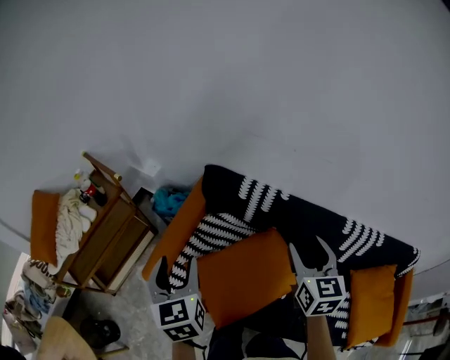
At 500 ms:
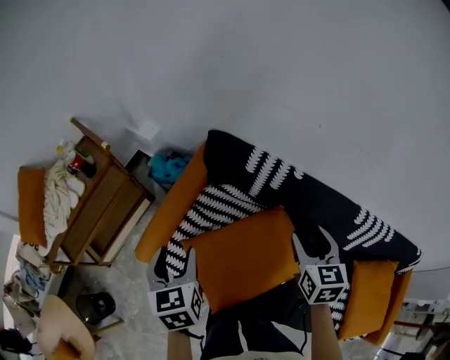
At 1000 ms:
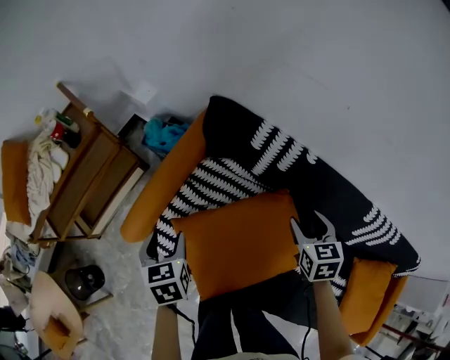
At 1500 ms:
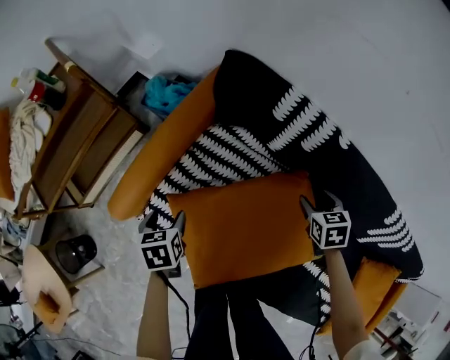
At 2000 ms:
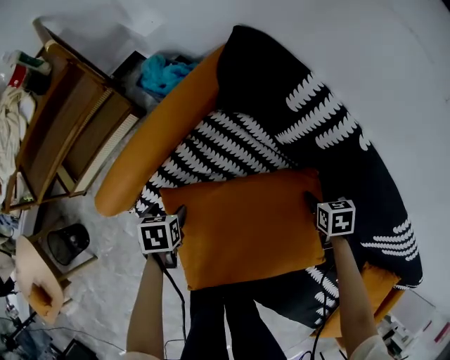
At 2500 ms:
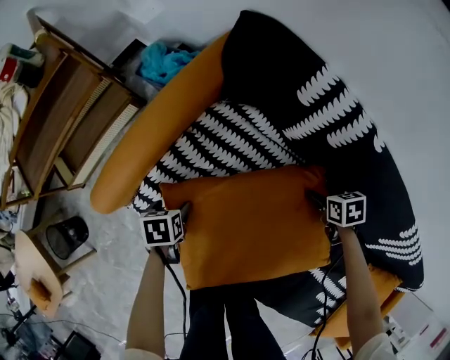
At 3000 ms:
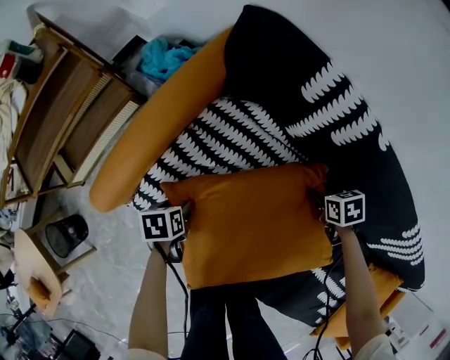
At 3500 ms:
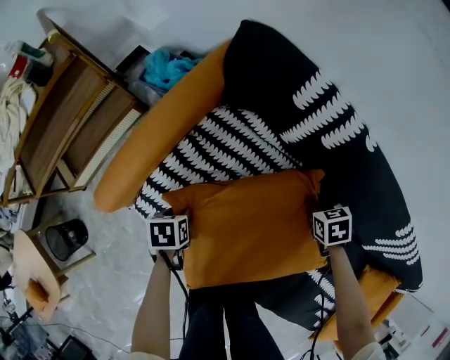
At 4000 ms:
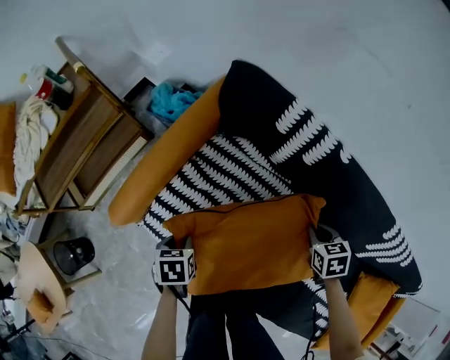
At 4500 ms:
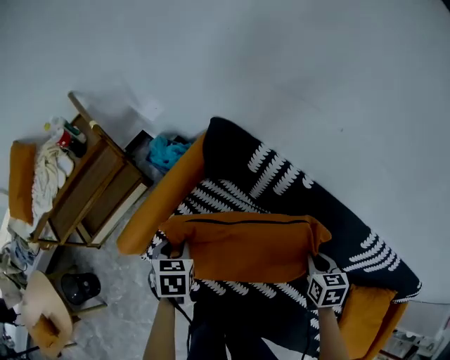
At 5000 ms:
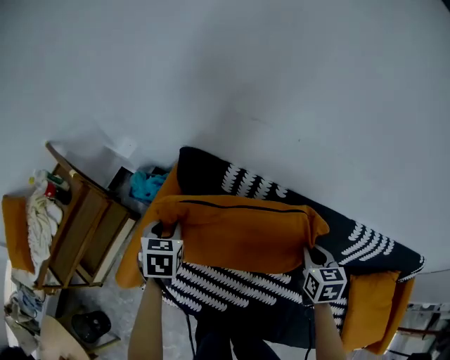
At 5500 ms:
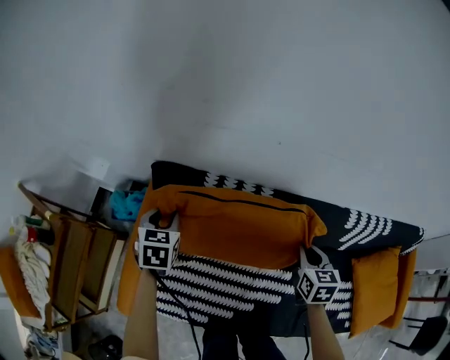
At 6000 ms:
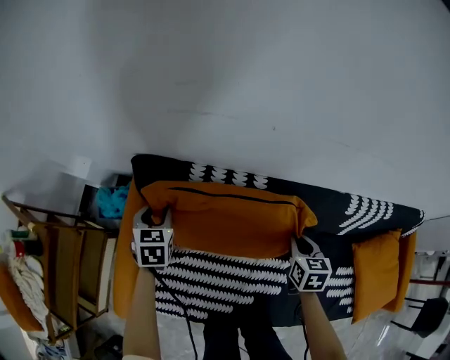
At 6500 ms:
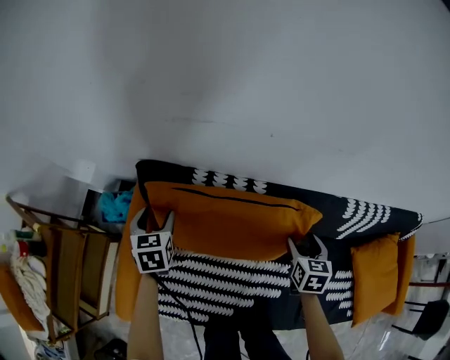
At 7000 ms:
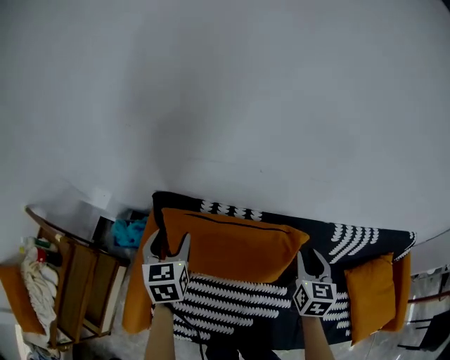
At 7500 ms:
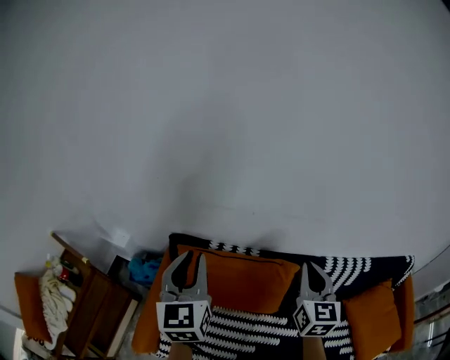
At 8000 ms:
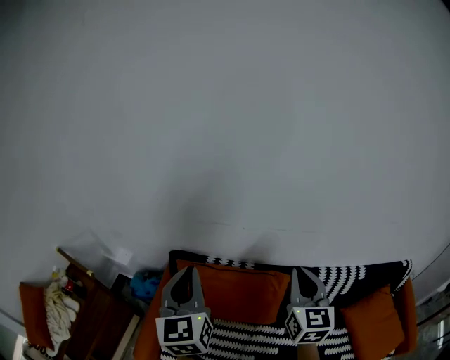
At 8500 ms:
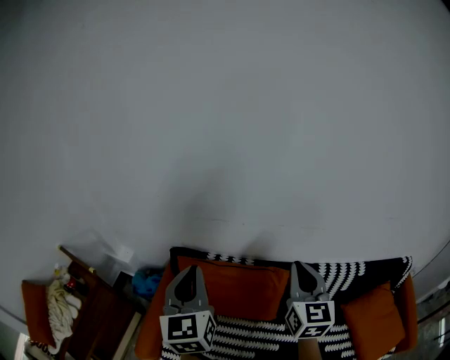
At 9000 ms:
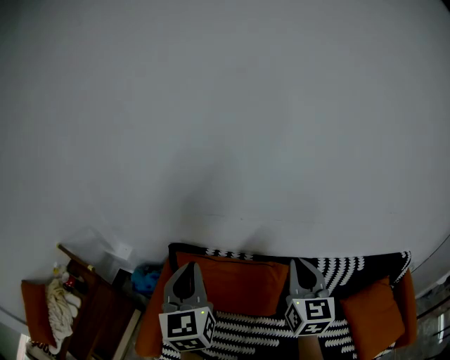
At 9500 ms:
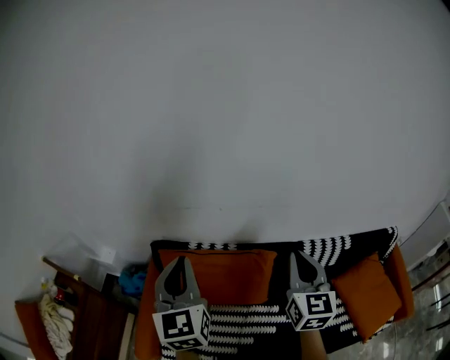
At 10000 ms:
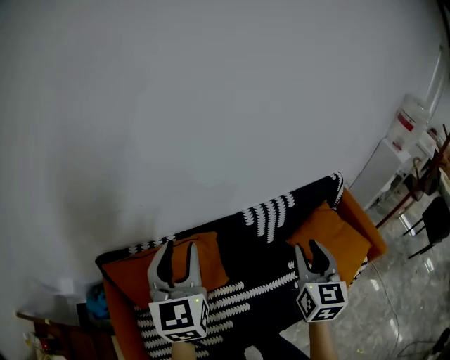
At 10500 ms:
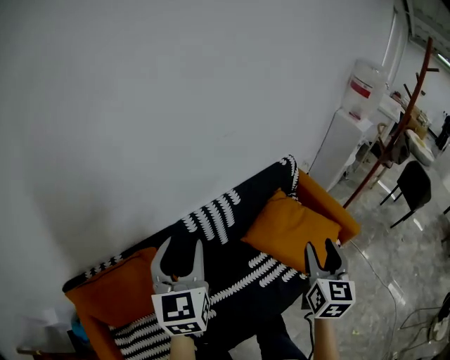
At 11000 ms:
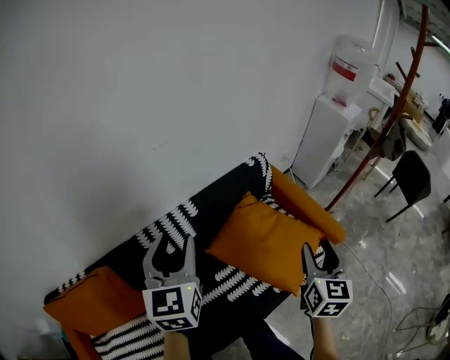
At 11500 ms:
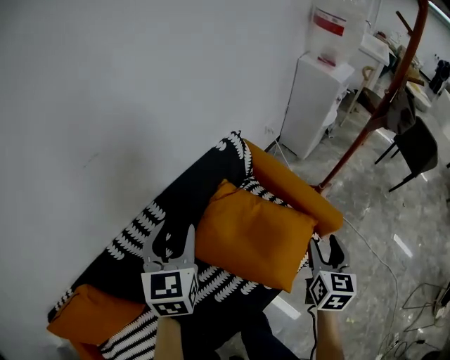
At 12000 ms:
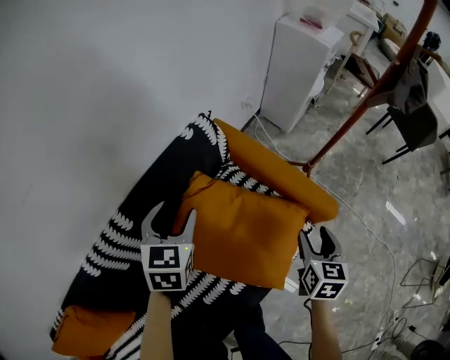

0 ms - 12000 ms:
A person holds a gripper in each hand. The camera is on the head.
0 ms - 2000 ms: Both grippers move downward, approximately 50 cm. The right gripper angles its fingers downward, by roughly 50 degrees, while the left gripper angles its fingers downward, by roughly 50 degrees.
2000 ms - 4000 ms: Both grippers move upward, about 10 cm. The left gripper closes its fingers; the right gripper closes up.
4000 ms - 6000 ms: The right gripper changes its angle by roughly 40 degrees. The left gripper moves some 40 cm, and rolls clockwise, seen from behind, by roughly 40 degrees.
6000 ms - 8000 ms: Both grippers travel together upward, some 50 cm. The left gripper tilts its fingers roughly 40 degrees upward, and closes its fingers. Meanwhile the right gripper points its fingers some 40 degrees further upward, and opens, then closes once more.
8000 ms - 10000 ms: The right gripper shifts by some 25 cm, turns by approximately 30 degrees, and opens. Meanwhile the left gripper shifts by roughly 20 cm, swivels about 30 degrees, and opens.
10000 ms - 12000 ms: The two grippers travel together, roughly 70 cm. The right gripper changes its angle by about 40 degrees. The left gripper tips its fingers downward by some 30 degrees.

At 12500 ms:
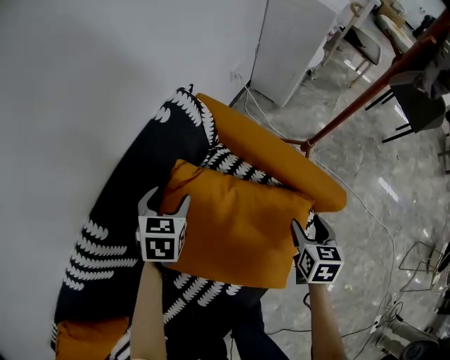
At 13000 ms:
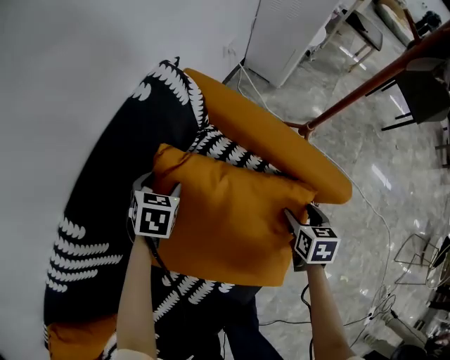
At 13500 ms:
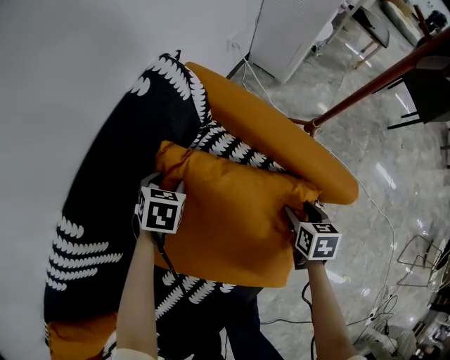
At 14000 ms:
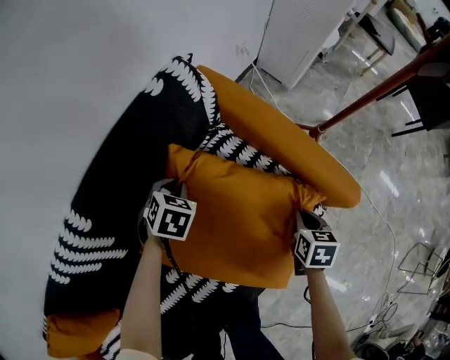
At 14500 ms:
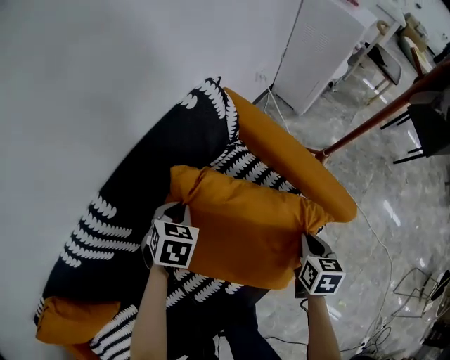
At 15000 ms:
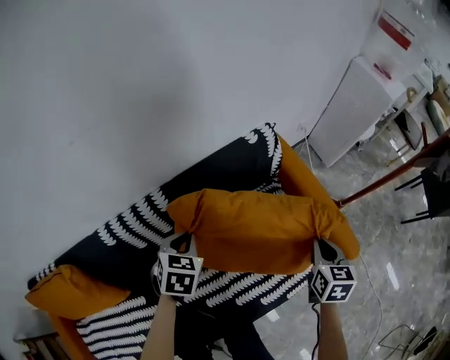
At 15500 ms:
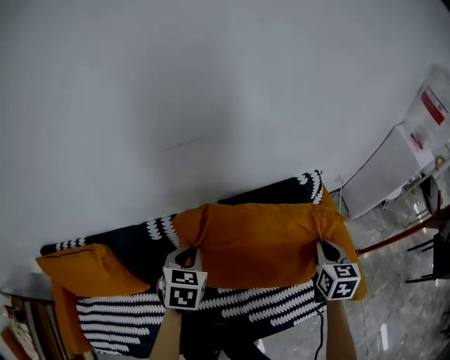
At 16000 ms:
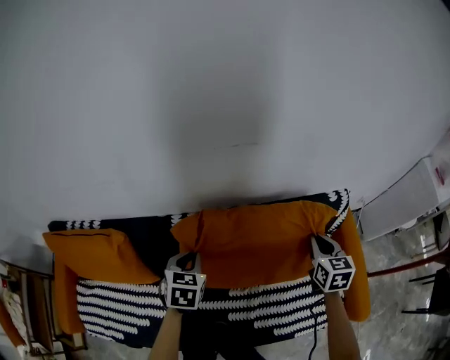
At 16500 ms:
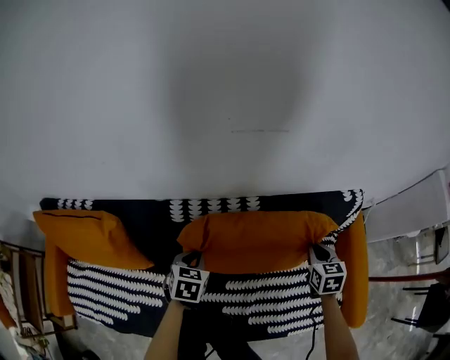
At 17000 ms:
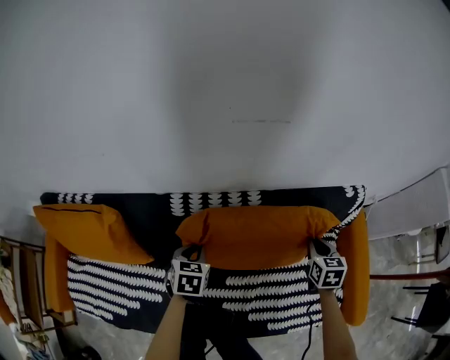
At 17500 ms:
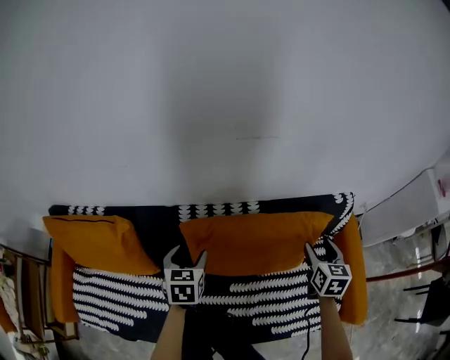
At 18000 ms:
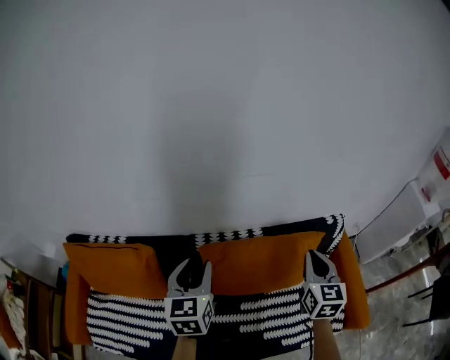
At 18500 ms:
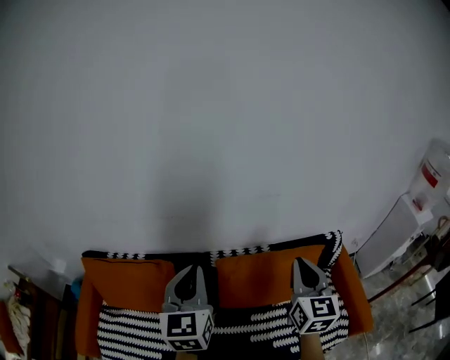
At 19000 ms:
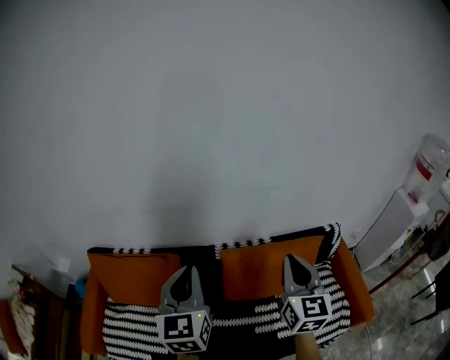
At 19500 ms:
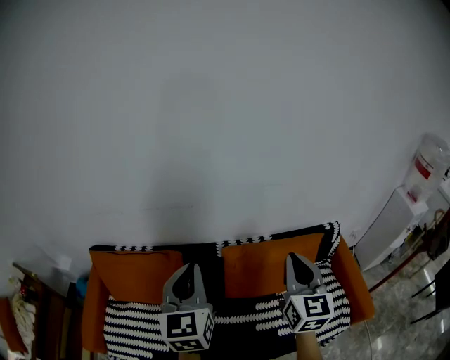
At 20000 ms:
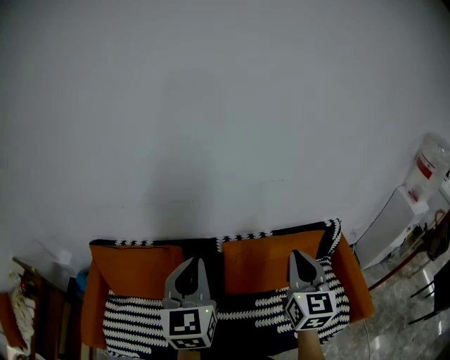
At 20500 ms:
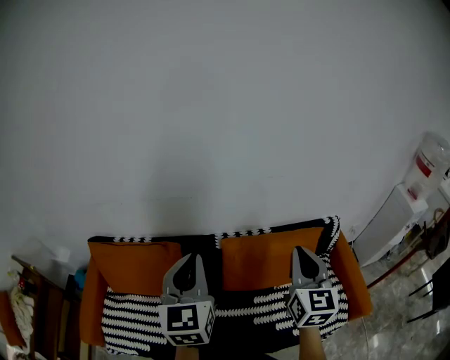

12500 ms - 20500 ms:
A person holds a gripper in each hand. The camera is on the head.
12500 ms - 14500 ms: The left gripper shifts some 5 cm backward, reaches about 15 cm downward, then returns, and closes its fingers. Meanwhile the right gripper travels downward and back again, some 10 cm each way, and closes its fingers.
14500 ms - 16500 ms: The left gripper reaches some 20 cm upward, then returns, and rotates around the line of its fingers by approximately 40 degrees, counterclockwise from behind. The right gripper moves approximately 20 cm upward and comes back, and twists about 50 degrees counterclockwise, seen from behind.
16500 ms - 18500 ms: The left gripper travels upward by approximately 40 cm, tips its fingers upward by approximately 50 degrees, and opens, then closes again. The right gripper shifts approximately 50 cm upward and to the left, tilts its fingers about 40 degrees upward, and opens, then closes again.
18500 ms - 20500 ms: The grippers both shift backward by roughly 10 cm.

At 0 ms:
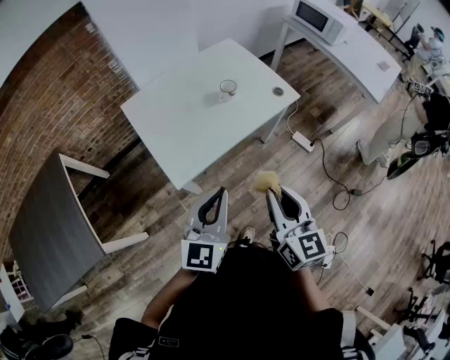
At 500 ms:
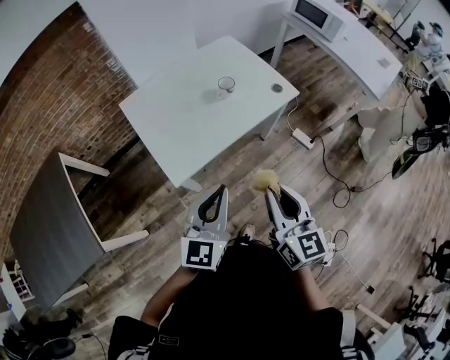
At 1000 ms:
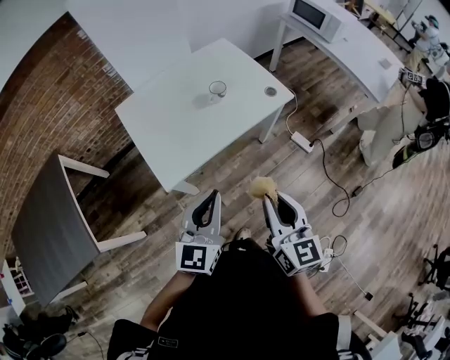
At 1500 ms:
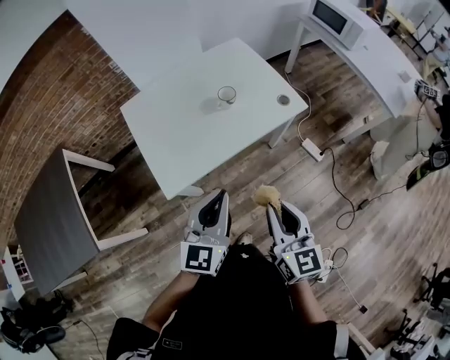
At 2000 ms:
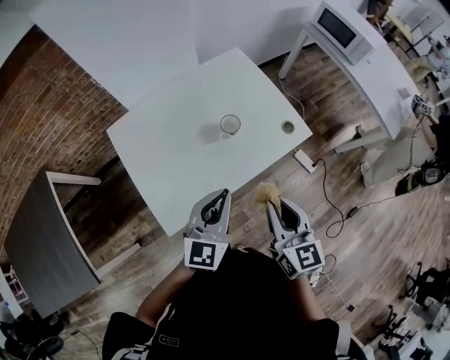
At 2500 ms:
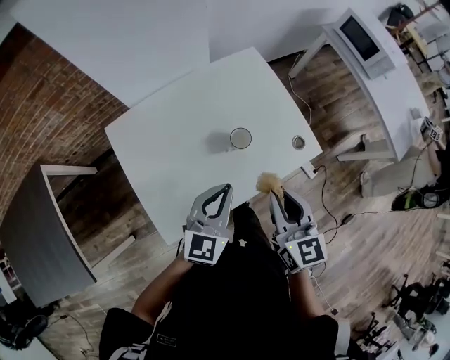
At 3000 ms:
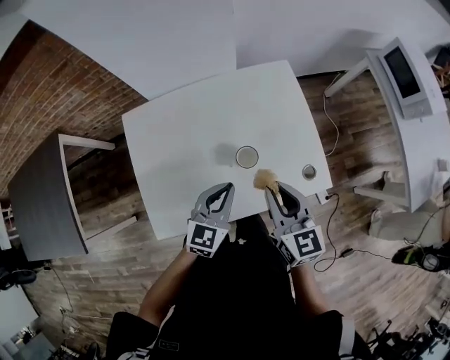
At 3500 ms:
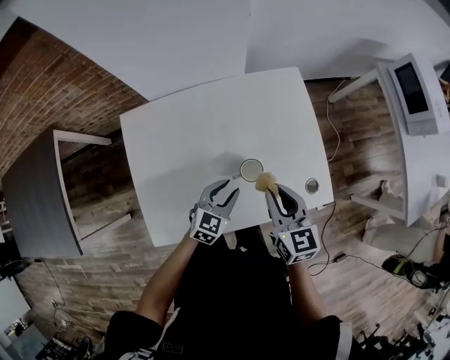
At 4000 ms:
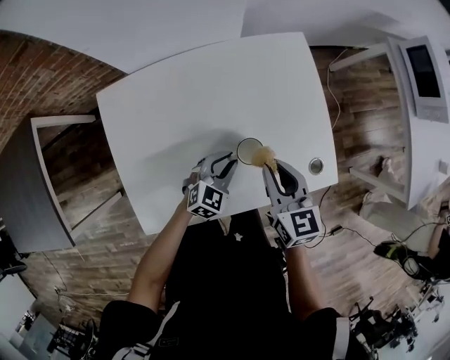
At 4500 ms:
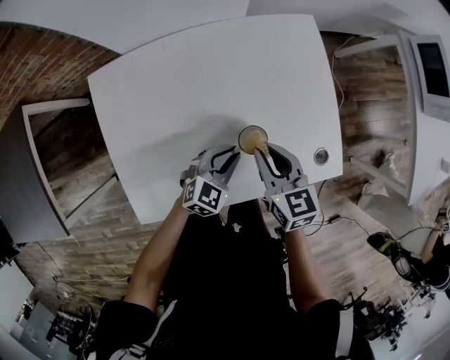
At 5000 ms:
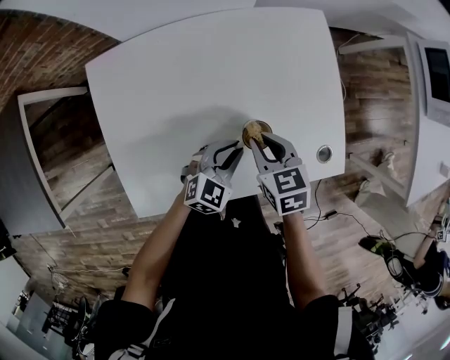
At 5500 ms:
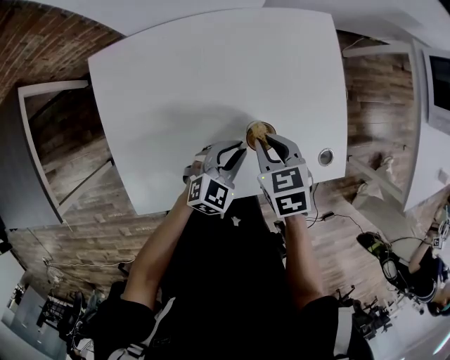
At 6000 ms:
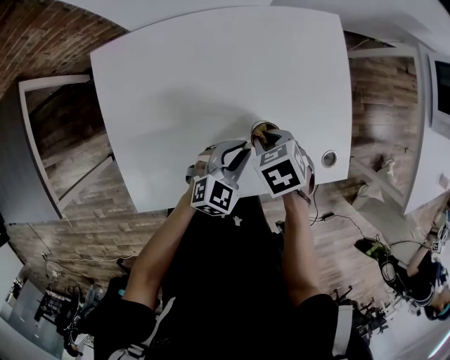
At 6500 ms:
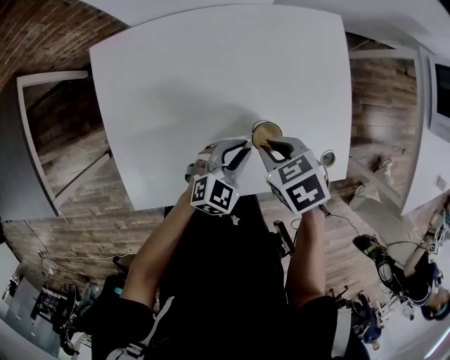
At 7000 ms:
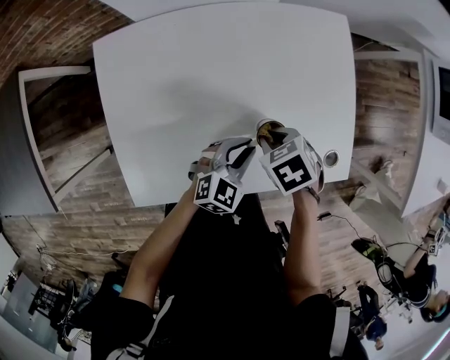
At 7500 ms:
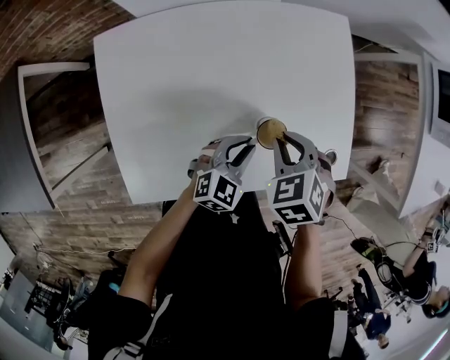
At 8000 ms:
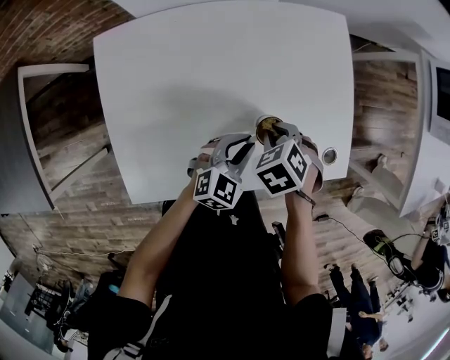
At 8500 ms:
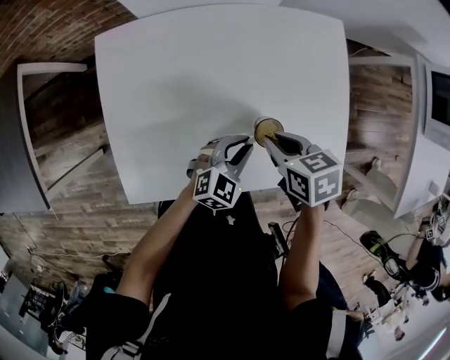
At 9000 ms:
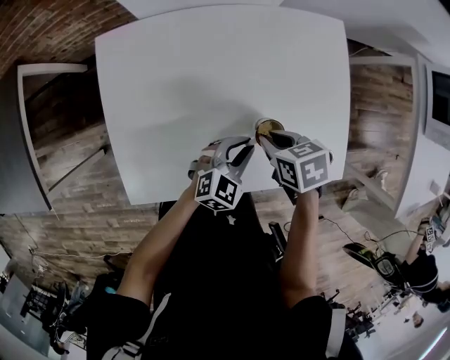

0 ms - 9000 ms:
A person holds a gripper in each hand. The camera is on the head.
0 ms - 2000 ms: Both grippers travel together forward, approximately 25 cm.
2000 ms - 4500 ms: The left gripper travels downward and forward by approximately 30 cm, and swivels approximately 30 degrees, while the right gripper travels forward and downward by about 35 cm, and changes its angle by about 30 degrees.
4500 ms - 7000 ms: The right gripper goes up and down, roughly 10 cm each way, reversing 2 times, and points its fingers about 40 degrees further downward.
7000 ms - 9000 ms: The right gripper goes up and down, roughly 5 cm each way, reversing 2 times.
